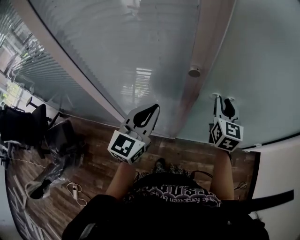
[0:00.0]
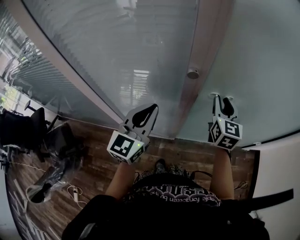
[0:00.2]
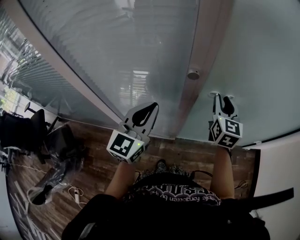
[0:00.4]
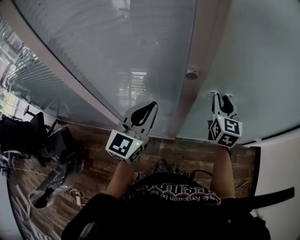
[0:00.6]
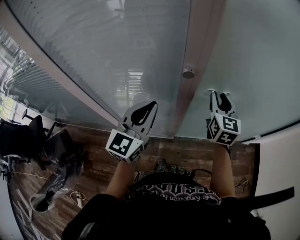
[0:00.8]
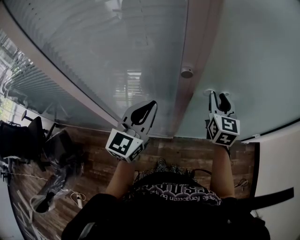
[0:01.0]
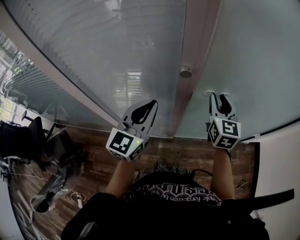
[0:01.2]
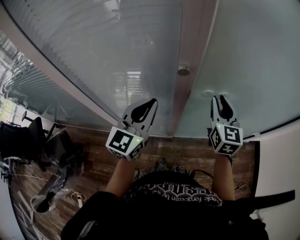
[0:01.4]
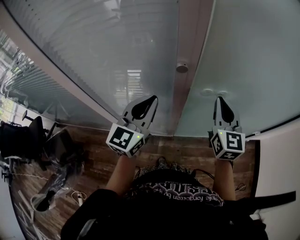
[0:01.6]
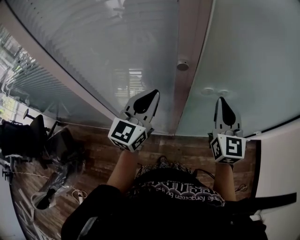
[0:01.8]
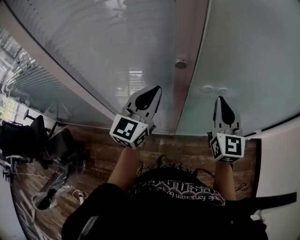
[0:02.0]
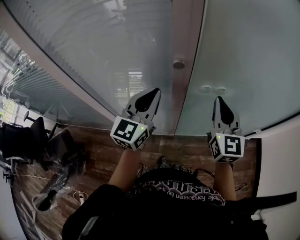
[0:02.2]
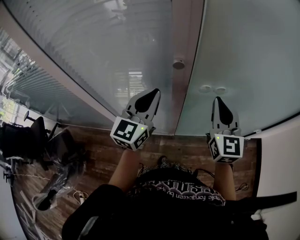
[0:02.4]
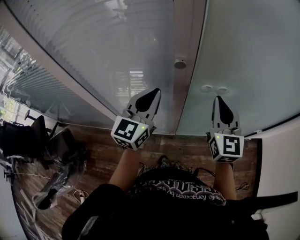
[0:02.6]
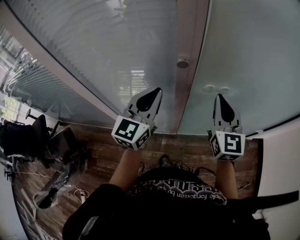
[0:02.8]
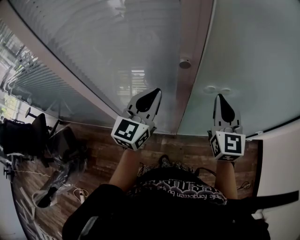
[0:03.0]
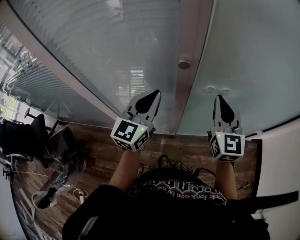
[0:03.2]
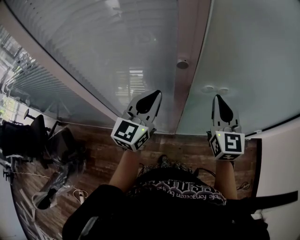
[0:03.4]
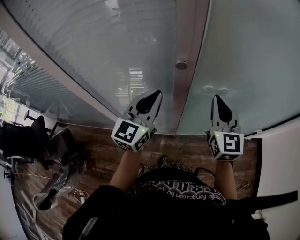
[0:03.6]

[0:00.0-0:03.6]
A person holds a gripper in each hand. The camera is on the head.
0:00.0 to 0:01.8: The right gripper shifts roughly 5 cm backward, and closes.
0:01.8 to 0:03.6: The grippers move only a little.

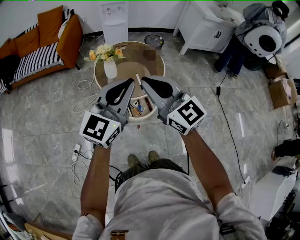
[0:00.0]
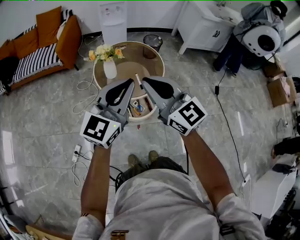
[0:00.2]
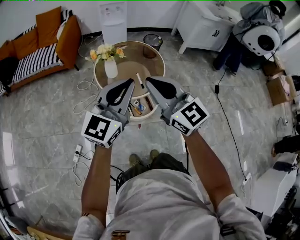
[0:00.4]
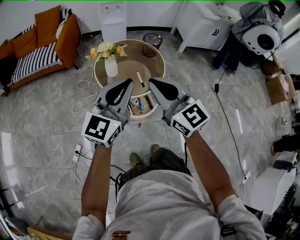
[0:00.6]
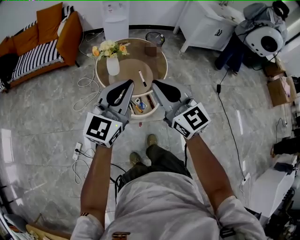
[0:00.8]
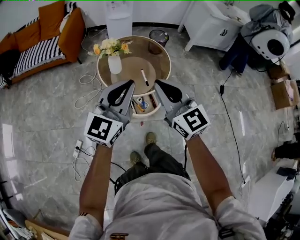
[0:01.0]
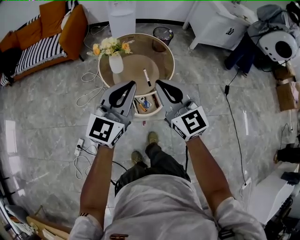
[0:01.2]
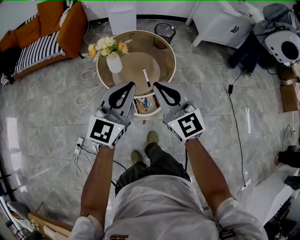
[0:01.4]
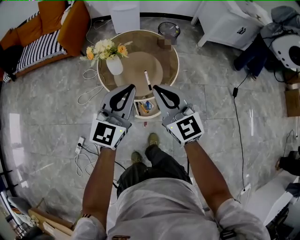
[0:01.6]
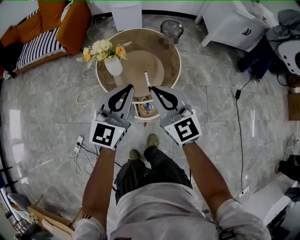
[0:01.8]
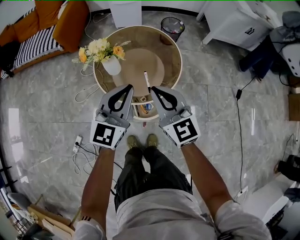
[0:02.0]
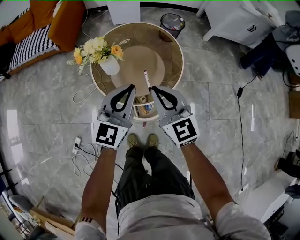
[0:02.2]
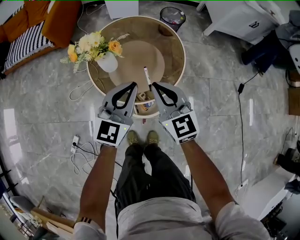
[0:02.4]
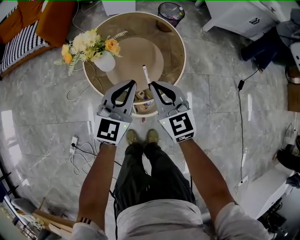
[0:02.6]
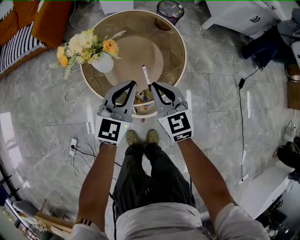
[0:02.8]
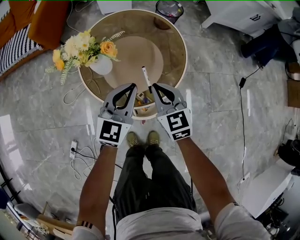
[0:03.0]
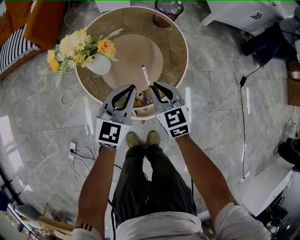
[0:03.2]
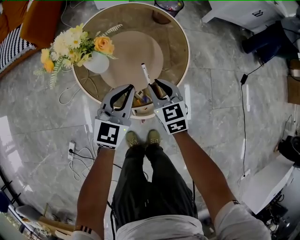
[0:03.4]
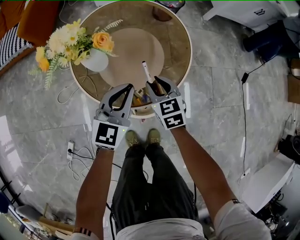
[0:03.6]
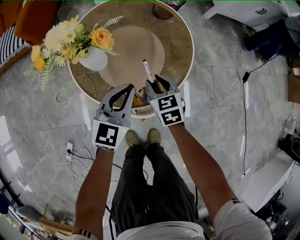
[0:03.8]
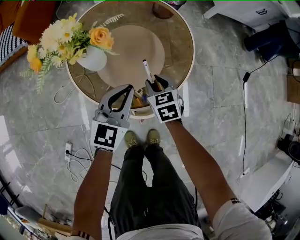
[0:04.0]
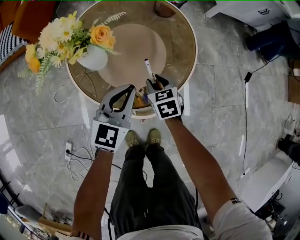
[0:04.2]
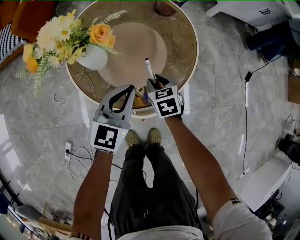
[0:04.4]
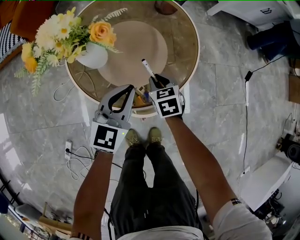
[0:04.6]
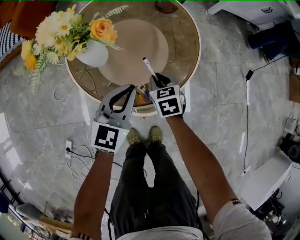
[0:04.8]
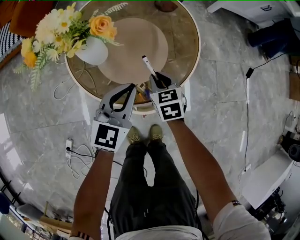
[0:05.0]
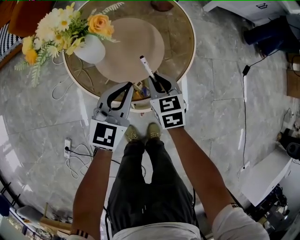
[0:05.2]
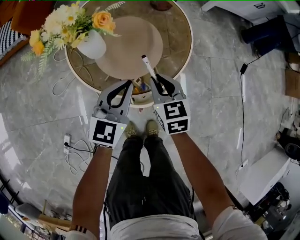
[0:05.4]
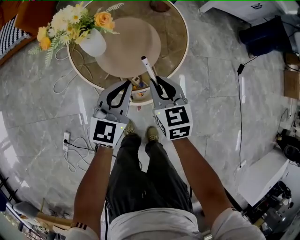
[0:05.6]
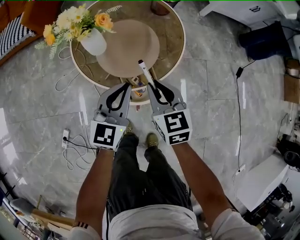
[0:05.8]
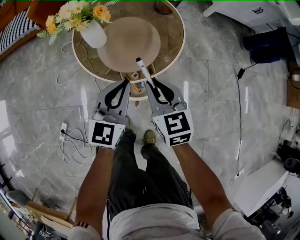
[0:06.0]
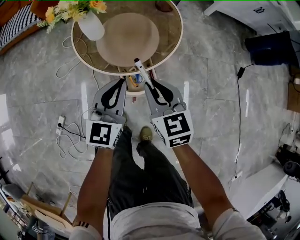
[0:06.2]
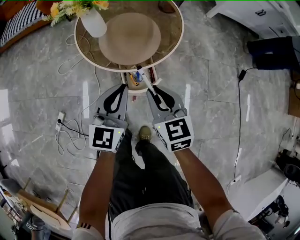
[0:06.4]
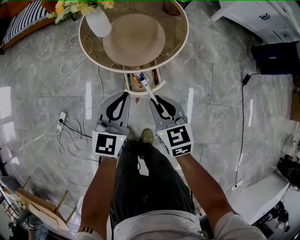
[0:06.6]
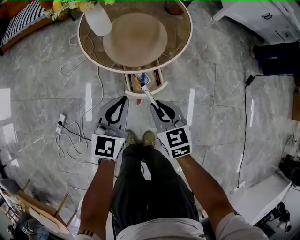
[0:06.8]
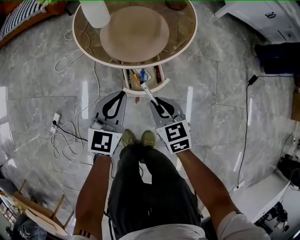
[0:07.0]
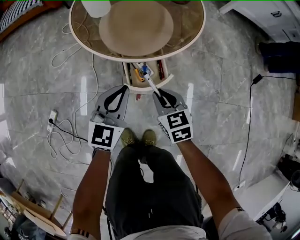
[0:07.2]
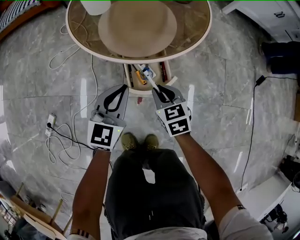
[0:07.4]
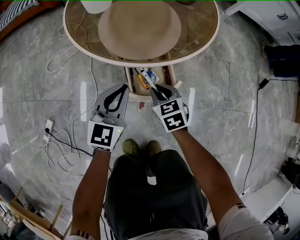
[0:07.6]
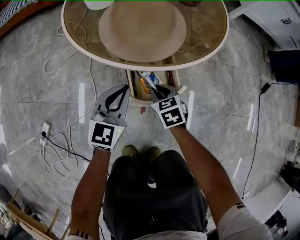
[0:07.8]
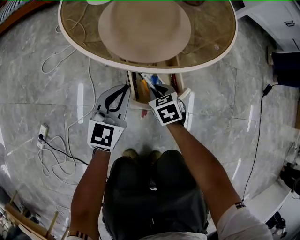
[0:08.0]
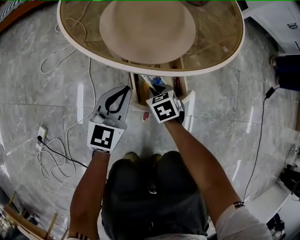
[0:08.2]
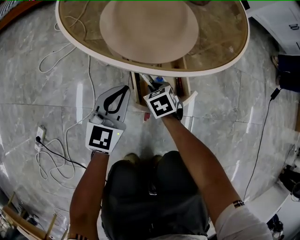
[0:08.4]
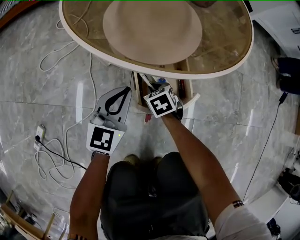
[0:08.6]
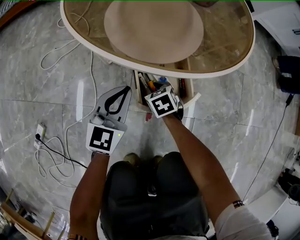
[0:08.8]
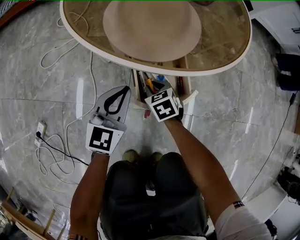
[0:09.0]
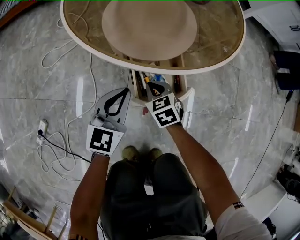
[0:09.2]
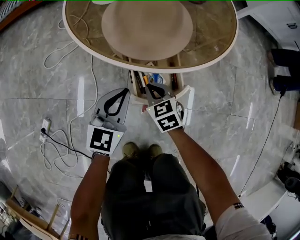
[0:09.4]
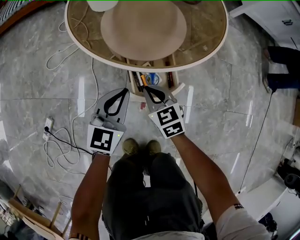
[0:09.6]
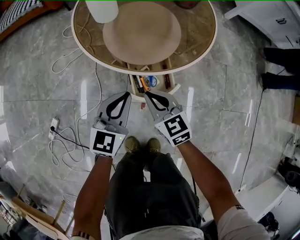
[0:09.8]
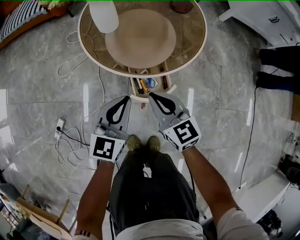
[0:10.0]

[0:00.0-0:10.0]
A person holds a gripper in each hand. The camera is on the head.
0:00.0 to 0:01.4: The two grippers go about 15 cm downward and forward.
0:01.4 to 0:02.8: The grippers both shift downward and forward by approximately 30 cm. The right gripper swivels some 20 degrees.
0:02.8 to 0:04.2: The left gripper shifts approximately 15 cm downward. Meanwhile the right gripper is displaced downward by approximately 25 cm, changes its angle by roughly 30 degrees, and opens up.
0:04.2 to 0:05.8: The left gripper travels upward and backward by some 10 cm, while the right gripper heads upward and backward, covering approximately 20 cm.
0:05.8 to 0:07.2: The grippers both shift downward and backward by roughly 25 cm.
0:07.2 to 0:08.6: Both grippers travel together downward, roughly 25 cm. The right gripper swivels roughly 20 degrees.
0:08.6 to 0:10.0: The right gripper shifts about 40 cm upward, and tilts its fingers approximately 40 degrees upward. The left gripper travels upward by about 25 cm.

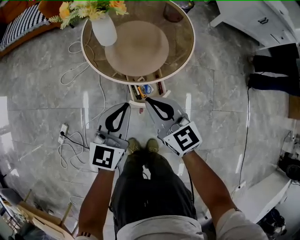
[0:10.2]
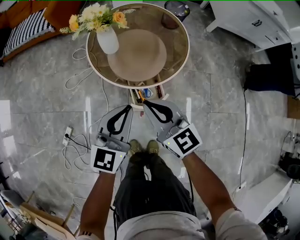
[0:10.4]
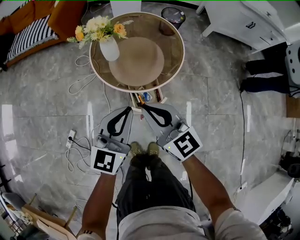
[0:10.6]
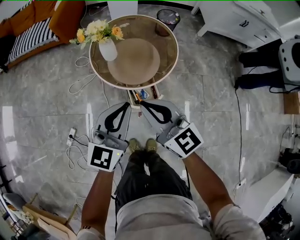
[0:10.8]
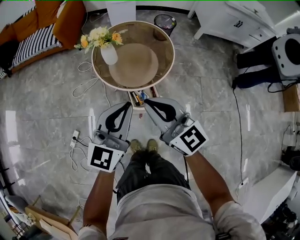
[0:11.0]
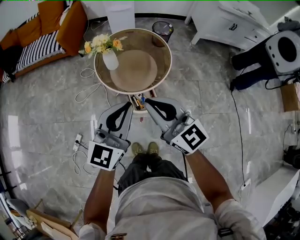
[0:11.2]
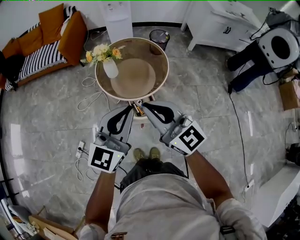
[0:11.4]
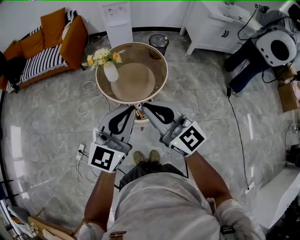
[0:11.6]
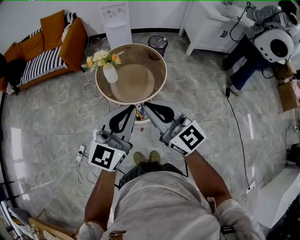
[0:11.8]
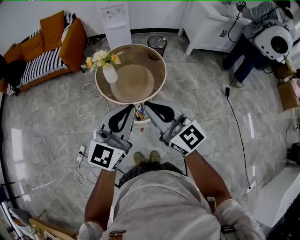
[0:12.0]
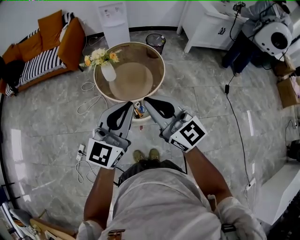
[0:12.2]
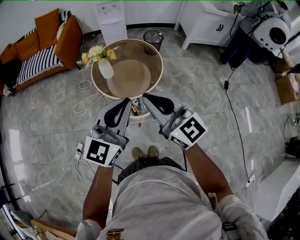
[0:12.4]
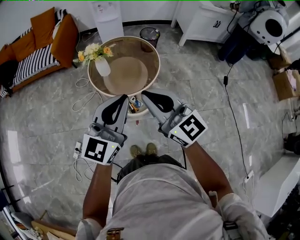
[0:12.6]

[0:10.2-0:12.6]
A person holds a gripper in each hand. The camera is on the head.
0:10.2 to 0:11.4: Both grippers travel together upward, approximately 35 cm. The right gripper turns by some 20 degrees.
0:11.4 to 0:12.6: The grippers make only small movements.

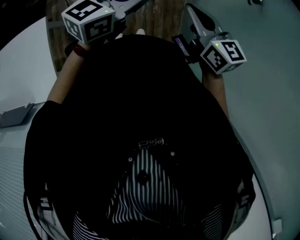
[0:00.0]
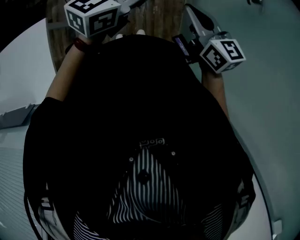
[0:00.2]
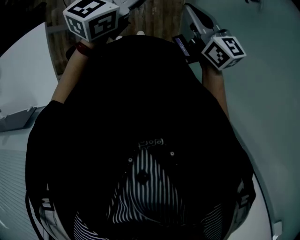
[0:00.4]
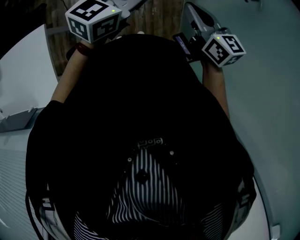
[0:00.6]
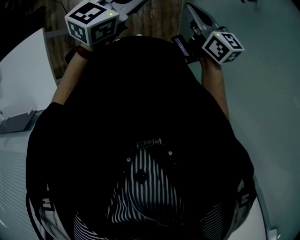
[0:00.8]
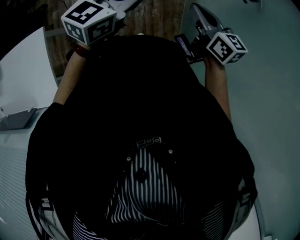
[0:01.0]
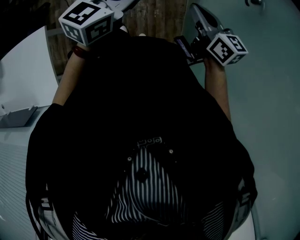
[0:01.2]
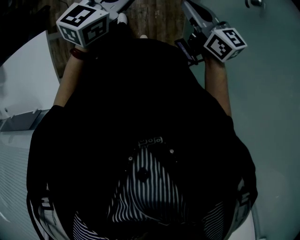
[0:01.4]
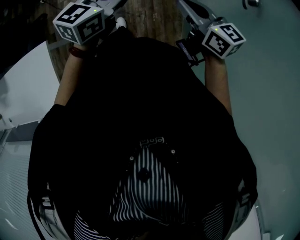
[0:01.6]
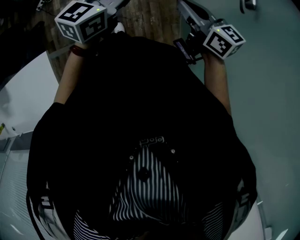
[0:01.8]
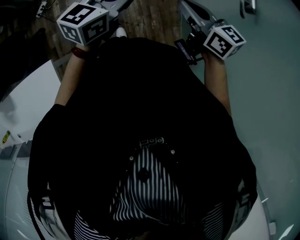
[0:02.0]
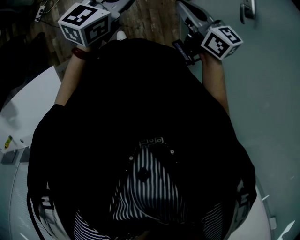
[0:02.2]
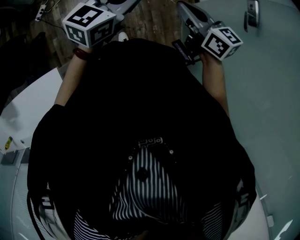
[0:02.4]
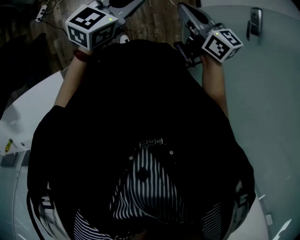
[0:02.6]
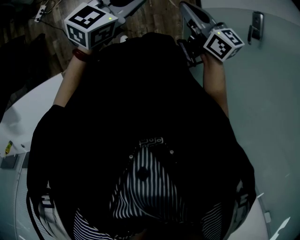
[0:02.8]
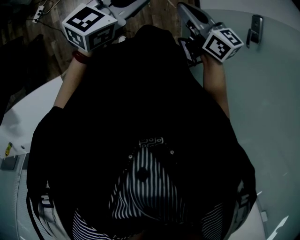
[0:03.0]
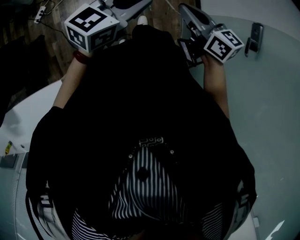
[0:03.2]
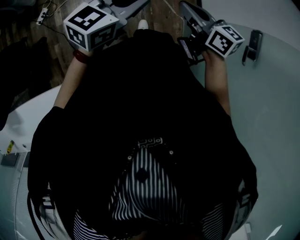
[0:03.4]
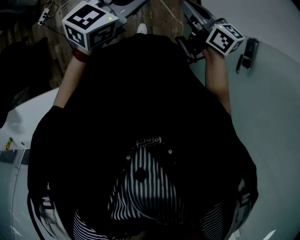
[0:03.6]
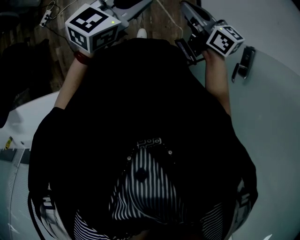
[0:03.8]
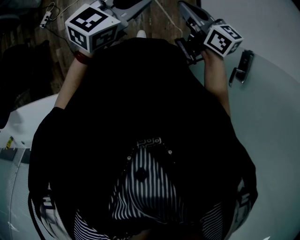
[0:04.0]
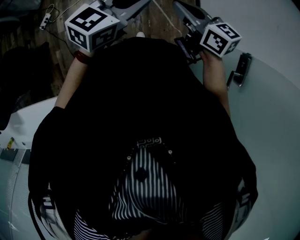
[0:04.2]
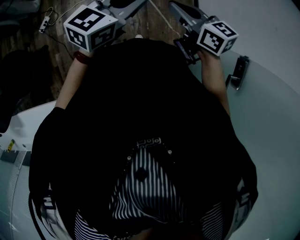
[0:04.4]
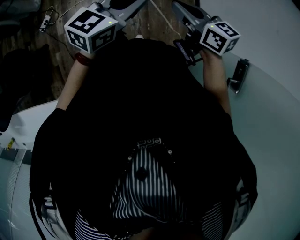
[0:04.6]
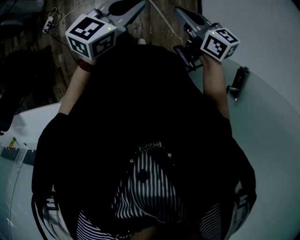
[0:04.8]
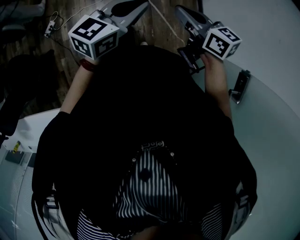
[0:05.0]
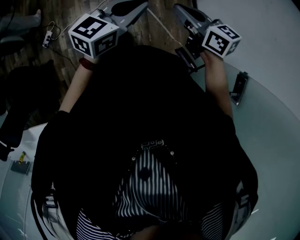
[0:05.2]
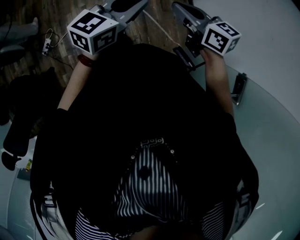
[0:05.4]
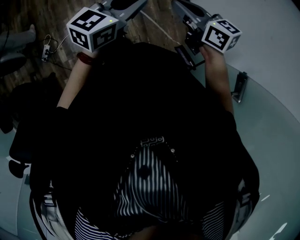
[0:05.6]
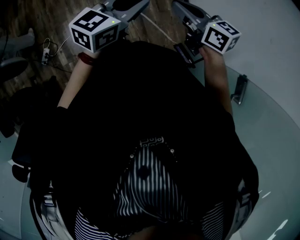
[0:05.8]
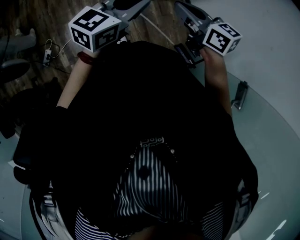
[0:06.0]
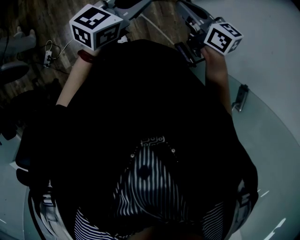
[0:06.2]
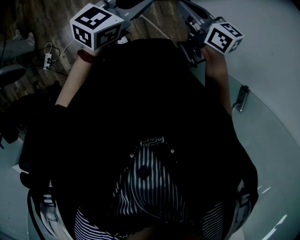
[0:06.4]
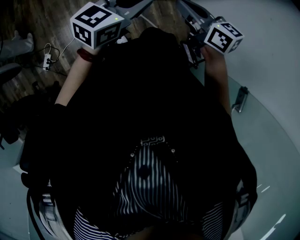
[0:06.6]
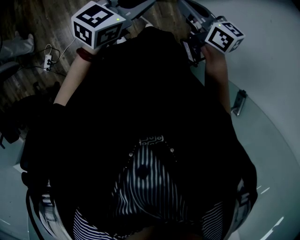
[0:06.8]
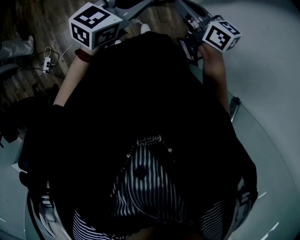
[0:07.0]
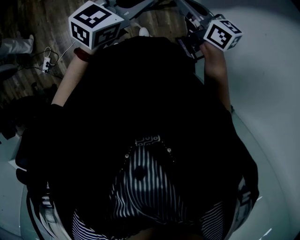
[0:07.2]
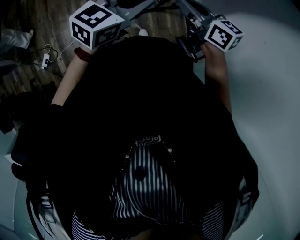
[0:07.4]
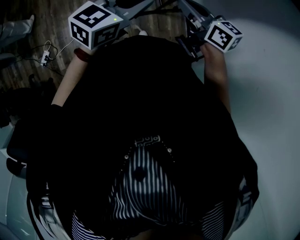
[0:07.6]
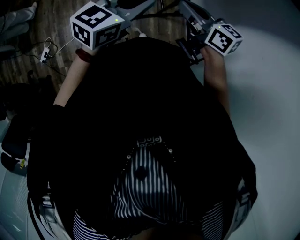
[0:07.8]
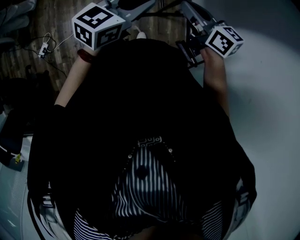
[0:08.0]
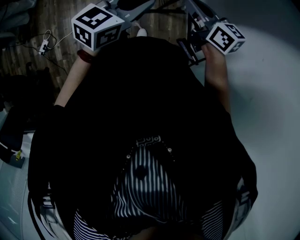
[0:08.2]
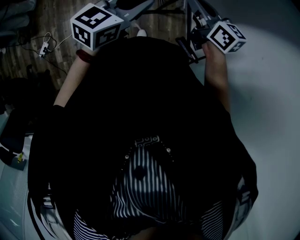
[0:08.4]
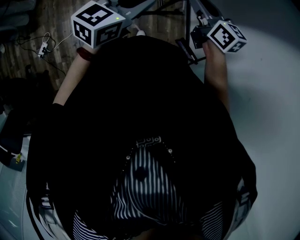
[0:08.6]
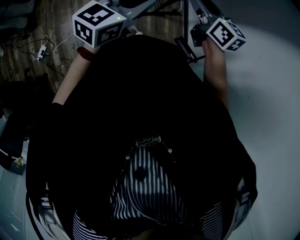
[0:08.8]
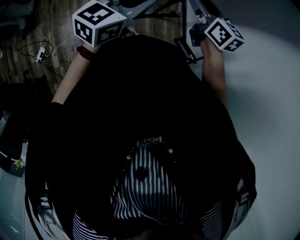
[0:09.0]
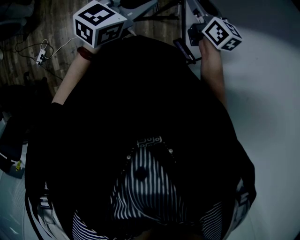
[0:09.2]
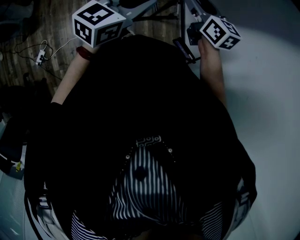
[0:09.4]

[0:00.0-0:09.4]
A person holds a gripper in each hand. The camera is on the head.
0:00.0 to 0:01.6: There are only small adjustments of the grippers.
0:01.6 to 0:03.2: The left gripper moves to the right, roughly 5 cm, and rotates about 20 degrees.
0:03.2 to 0:04.8: The grippers stay close to where they were, moving slightly.
0:04.8 to 0:06.2: The left gripper moves about 5 cm, and rotates approximately 20 degrees.
0:06.2 to 0:07.8: The right gripper moves forward, roughly 5 cm.
0:07.8 to 0:09.4: The right gripper goes about 5 cm forward, swivels some 20 degrees, and opens.
